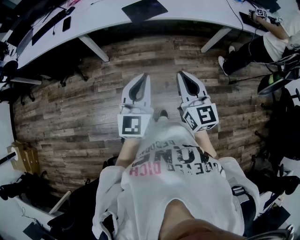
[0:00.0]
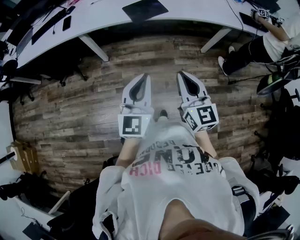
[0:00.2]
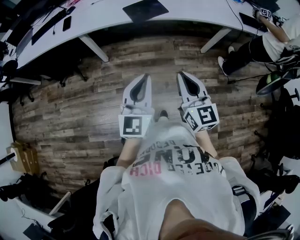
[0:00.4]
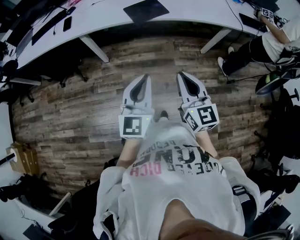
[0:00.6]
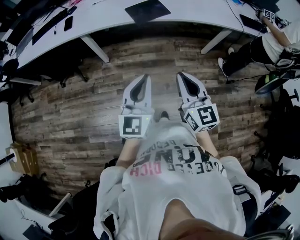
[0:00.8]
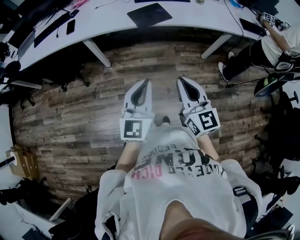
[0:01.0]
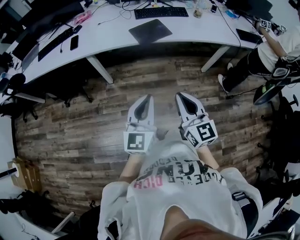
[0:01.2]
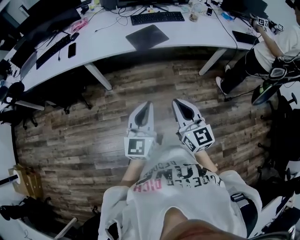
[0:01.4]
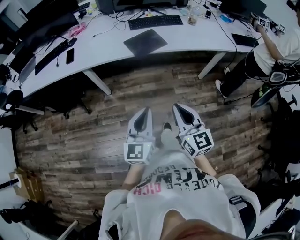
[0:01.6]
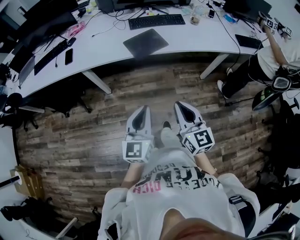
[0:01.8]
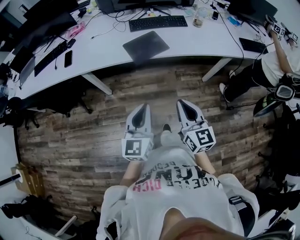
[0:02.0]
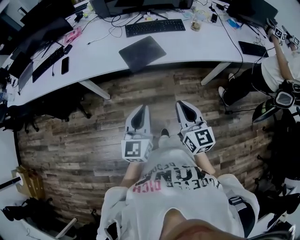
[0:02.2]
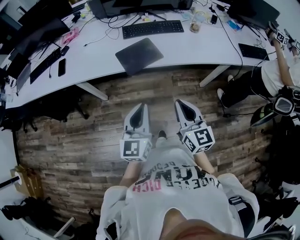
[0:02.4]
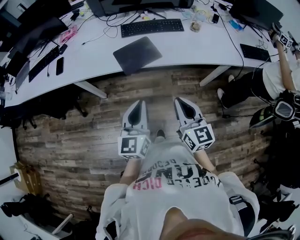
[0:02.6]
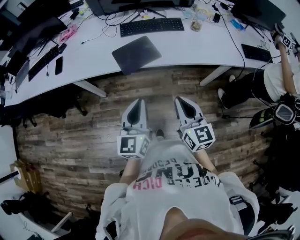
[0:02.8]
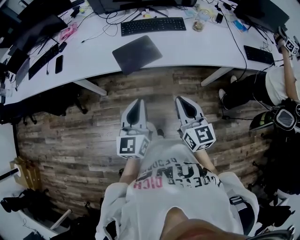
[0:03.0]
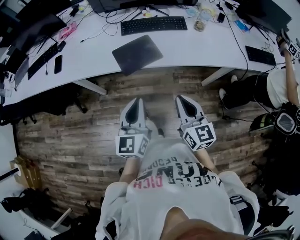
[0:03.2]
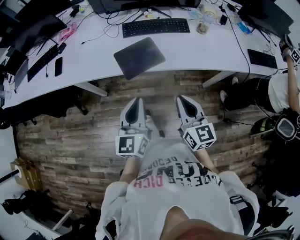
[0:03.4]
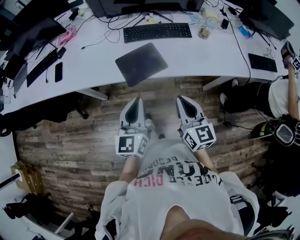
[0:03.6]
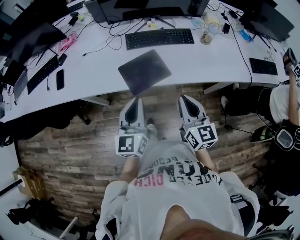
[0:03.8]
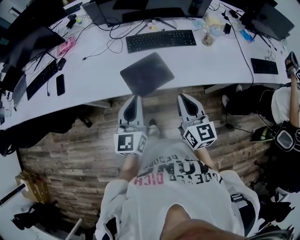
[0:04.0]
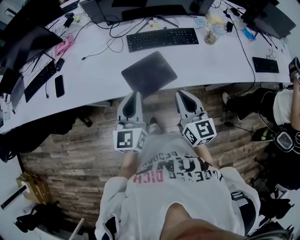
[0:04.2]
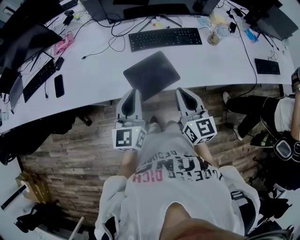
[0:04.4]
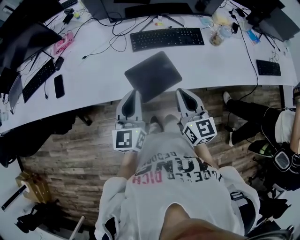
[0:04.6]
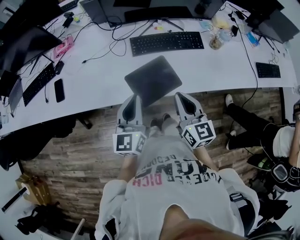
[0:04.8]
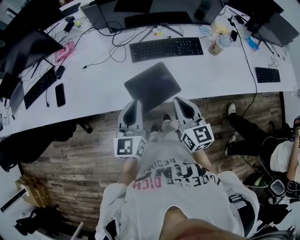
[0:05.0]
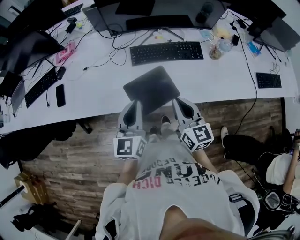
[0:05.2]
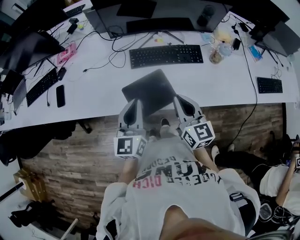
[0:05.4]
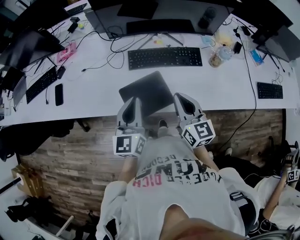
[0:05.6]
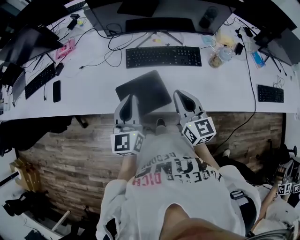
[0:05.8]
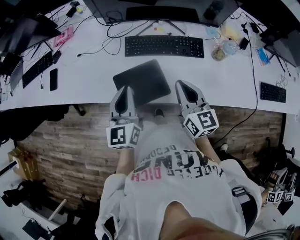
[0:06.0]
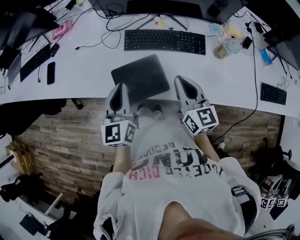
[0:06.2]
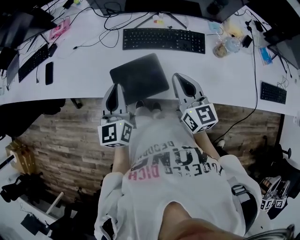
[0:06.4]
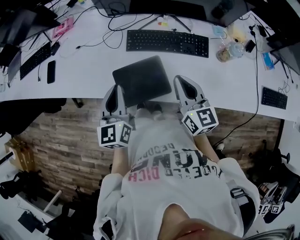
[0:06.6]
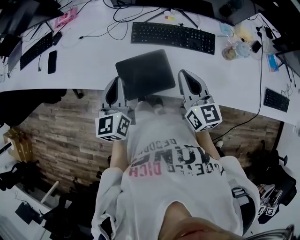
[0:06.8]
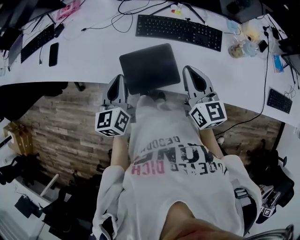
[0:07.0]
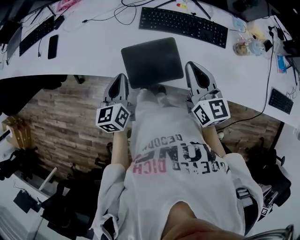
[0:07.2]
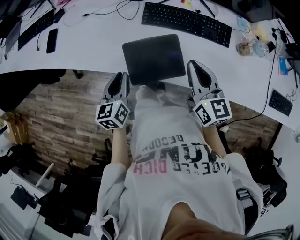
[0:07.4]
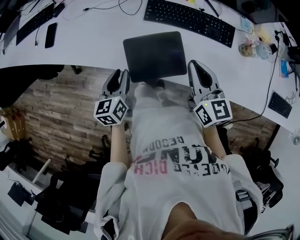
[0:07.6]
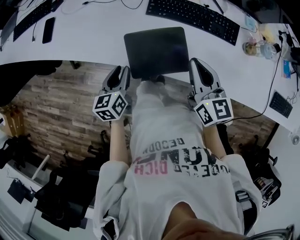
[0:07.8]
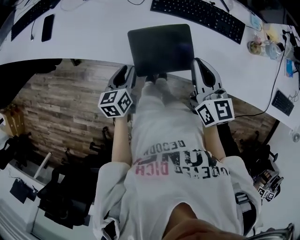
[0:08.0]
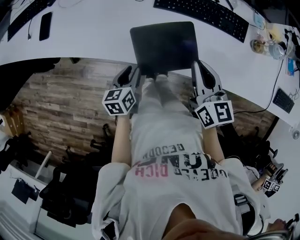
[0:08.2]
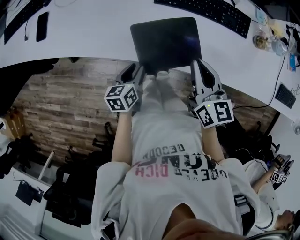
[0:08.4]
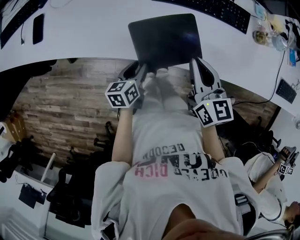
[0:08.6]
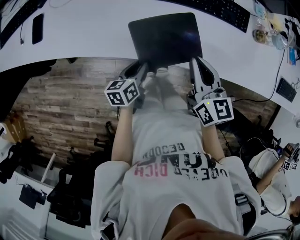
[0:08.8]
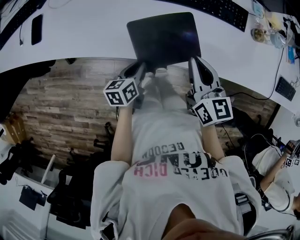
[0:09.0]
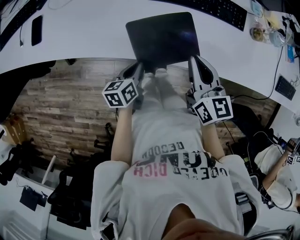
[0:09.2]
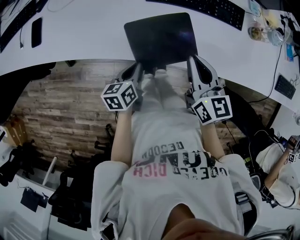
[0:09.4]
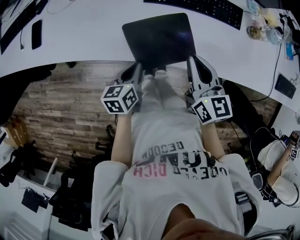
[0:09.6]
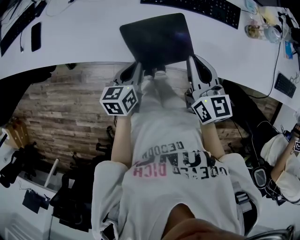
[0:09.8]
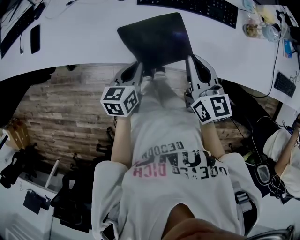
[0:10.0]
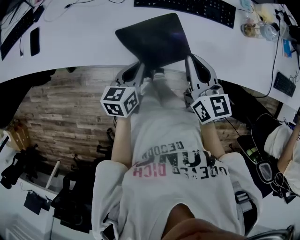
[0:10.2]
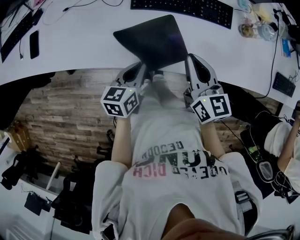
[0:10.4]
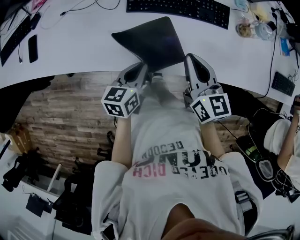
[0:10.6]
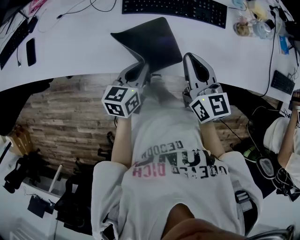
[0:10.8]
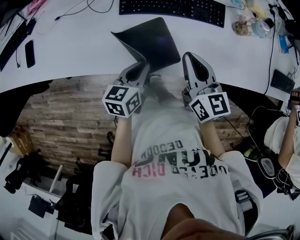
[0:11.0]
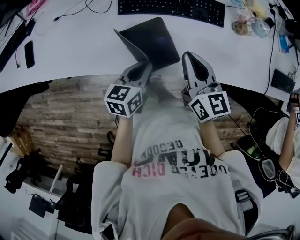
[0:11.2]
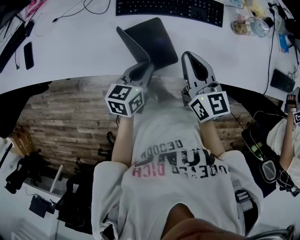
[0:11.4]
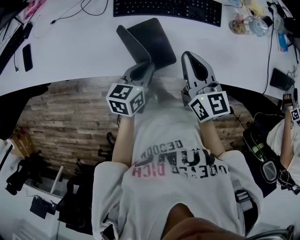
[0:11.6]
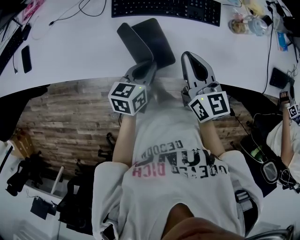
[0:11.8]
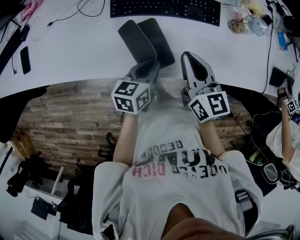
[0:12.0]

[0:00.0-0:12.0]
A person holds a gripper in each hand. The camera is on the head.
0:00.0 to 0:01.6: The right gripper shifts by about 5 cm. The left gripper moves roughly 5 cm.
0:01.6 to 0:03.0: Both grippers travel together forward and to the right, some 25 cm.
0:03.0 to 0:04.4: The two grippers go approximately 25 cm forward and to the left.
0:04.4 to 0:06.0: The right gripper moves forward and to the right, roughly 15 cm. Meanwhile the left gripper is displaced forward and to the right by roughly 10 cm.
0:06.0 to 0:07.6: The left gripper moves downward and to the left, approximately 20 cm, rotates about 30 degrees, and opens. The right gripper ends up roughly 5 cm from where it was.
0:07.6 to 0:09.0: The right gripper ends up some 5 cm from where it was. Meanwhile the left gripper goes about 10 cm downward, and swivels roughly 30 degrees.
0:09.0 to 0:10.4: The left gripper goes about 10 cm upward and to the right, while the right gripper moves approximately 5 cm.
0:10.4 to 0:12.0: The right gripper shifts by some 5 cm. The left gripper heads to the right, covering approximately 10 cm.

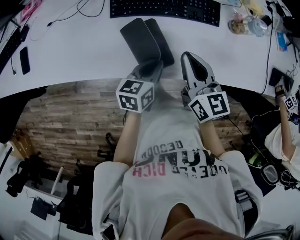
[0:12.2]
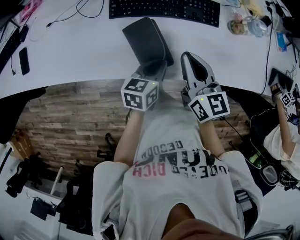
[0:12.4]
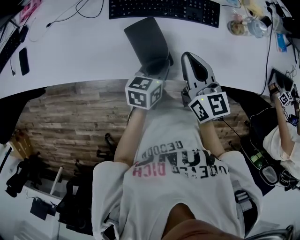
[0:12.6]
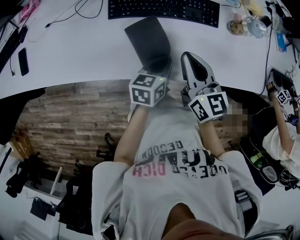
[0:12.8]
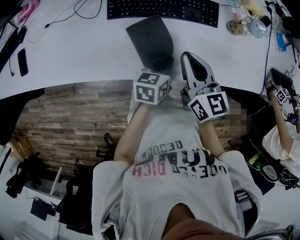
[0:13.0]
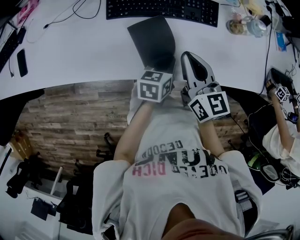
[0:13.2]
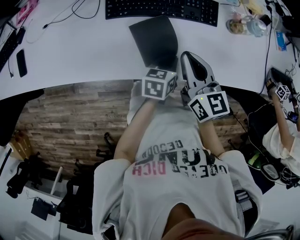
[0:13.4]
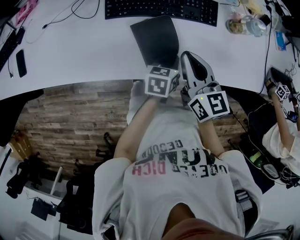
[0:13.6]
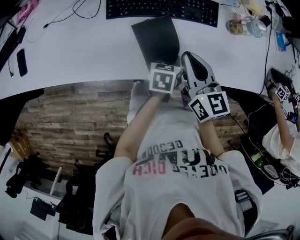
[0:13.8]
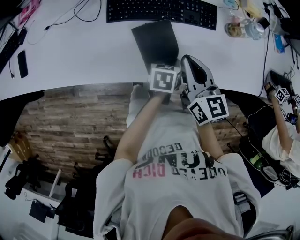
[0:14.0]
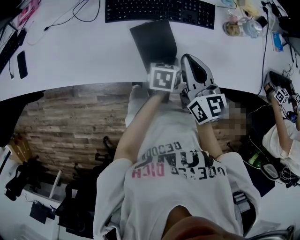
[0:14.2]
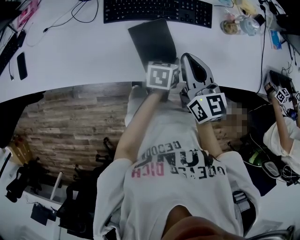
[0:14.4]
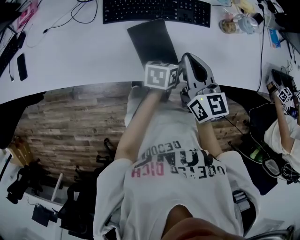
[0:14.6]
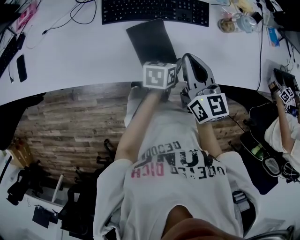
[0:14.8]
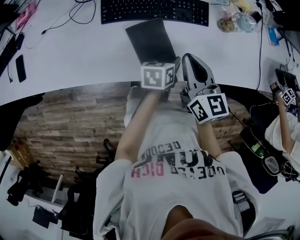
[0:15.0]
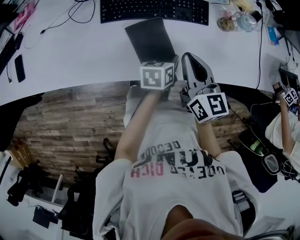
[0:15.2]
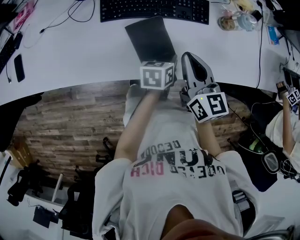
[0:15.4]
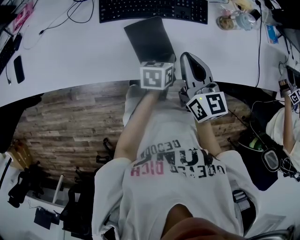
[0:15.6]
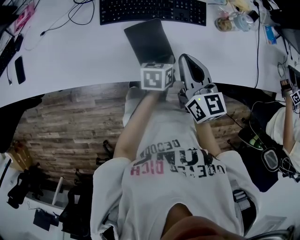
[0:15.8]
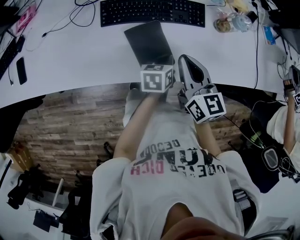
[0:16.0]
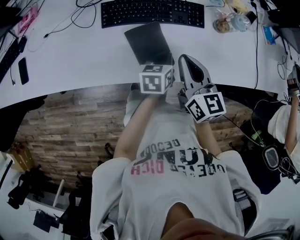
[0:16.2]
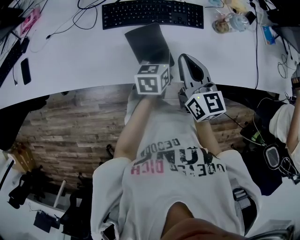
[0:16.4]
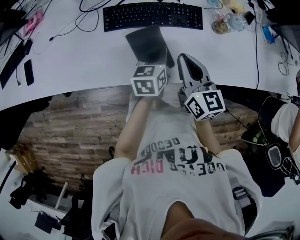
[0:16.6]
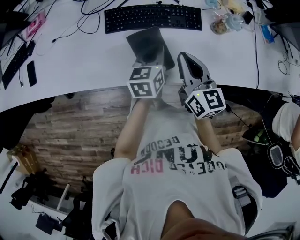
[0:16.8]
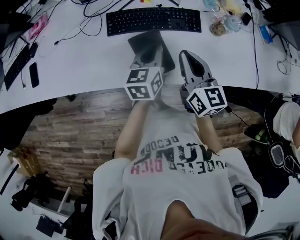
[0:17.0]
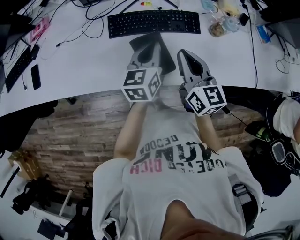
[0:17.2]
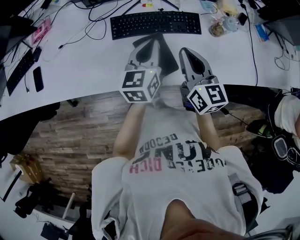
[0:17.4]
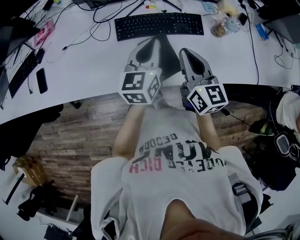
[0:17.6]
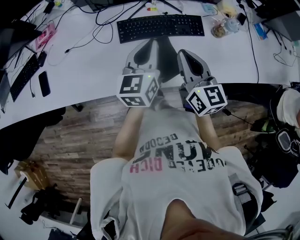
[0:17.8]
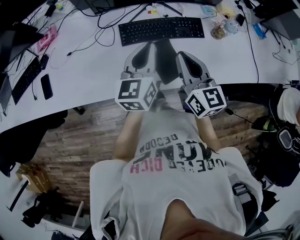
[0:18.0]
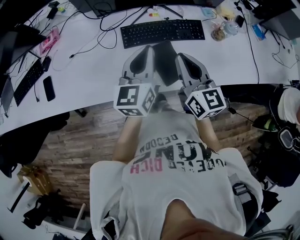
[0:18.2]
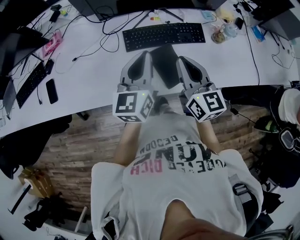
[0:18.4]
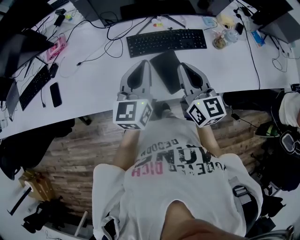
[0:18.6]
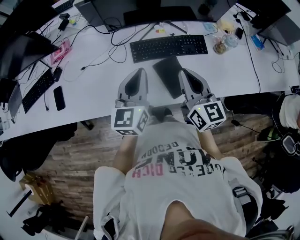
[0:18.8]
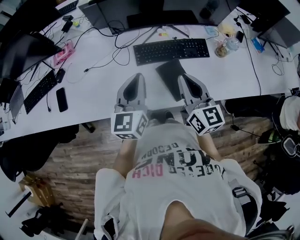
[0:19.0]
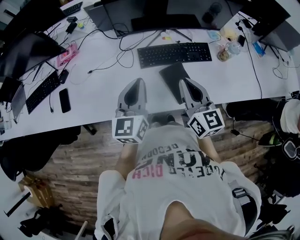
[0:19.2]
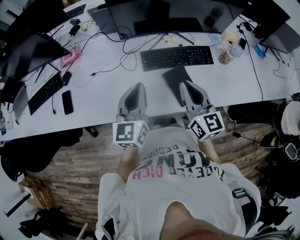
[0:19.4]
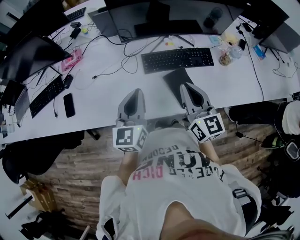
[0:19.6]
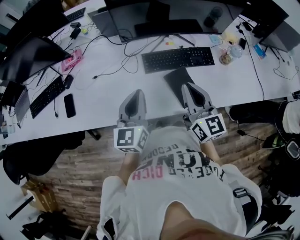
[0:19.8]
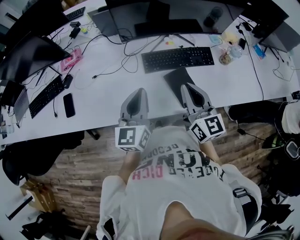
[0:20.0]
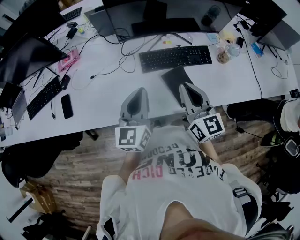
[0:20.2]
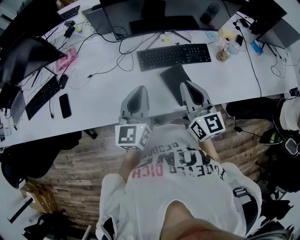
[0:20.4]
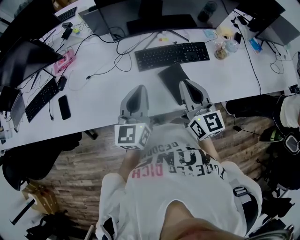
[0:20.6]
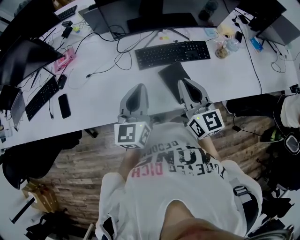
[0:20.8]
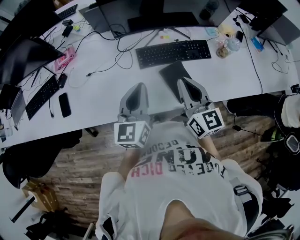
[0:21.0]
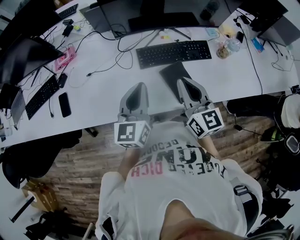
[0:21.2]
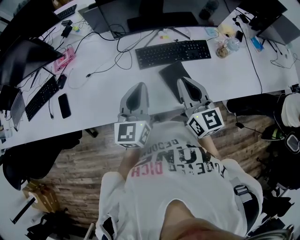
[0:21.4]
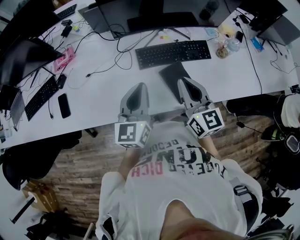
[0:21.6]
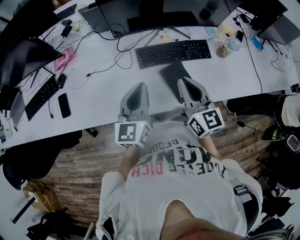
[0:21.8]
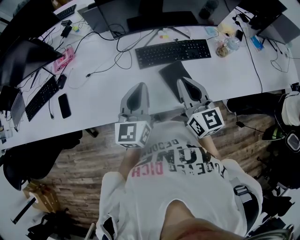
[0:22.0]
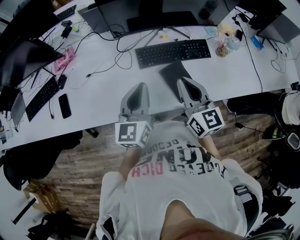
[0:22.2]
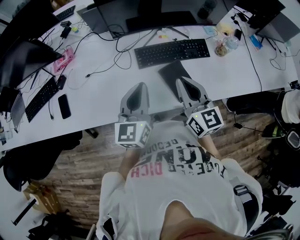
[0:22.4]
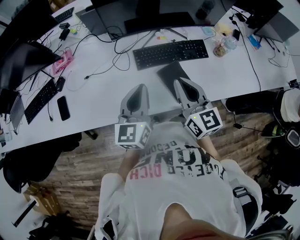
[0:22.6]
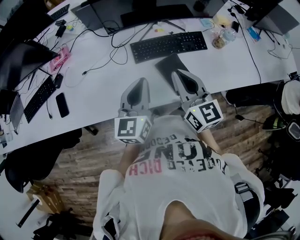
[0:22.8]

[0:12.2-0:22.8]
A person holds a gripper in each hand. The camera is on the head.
0:12.2 to 0:13.8: The left gripper heads to the right and downward, covering approximately 10 cm.
0:13.8 to 0:15.2: The left gripper opens.
0:15.2 to 0:16.8: The left gripper shifts approximately 10 cm upward and to the left, changes its angle by approximately 30 degrees, and closes its fingers.
0:16.8 to 0:18.2: The left gripper moves upward and to the left, about 20 cm, and swivels some 20 degrees, while the right gripper travels to the left and upward by some 10 cm.
0:18.2 to 0:19.8: The right gripper heads to the left, covering roughly 5 cm; the left gripper moves to the left and backward, some 15 cm.
0:19.8 to 0:22.8: The grippers move only a little.

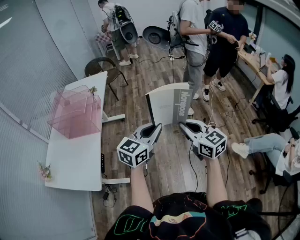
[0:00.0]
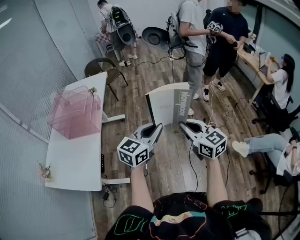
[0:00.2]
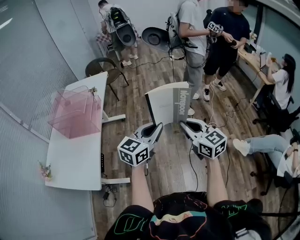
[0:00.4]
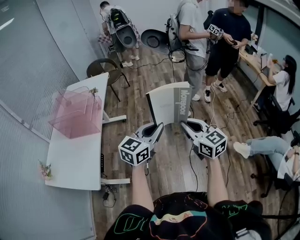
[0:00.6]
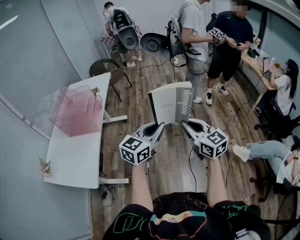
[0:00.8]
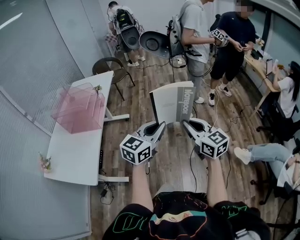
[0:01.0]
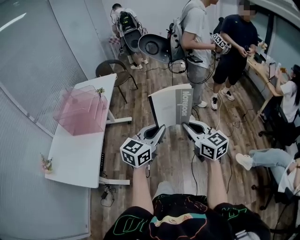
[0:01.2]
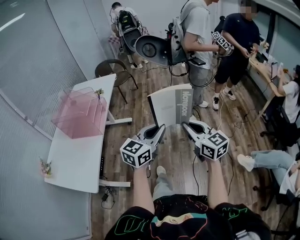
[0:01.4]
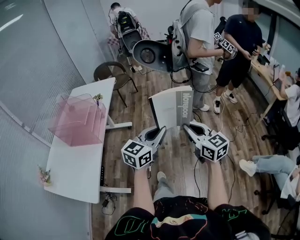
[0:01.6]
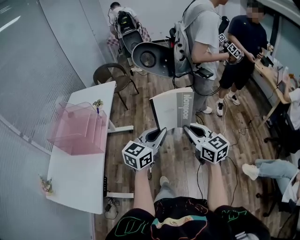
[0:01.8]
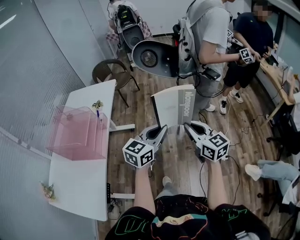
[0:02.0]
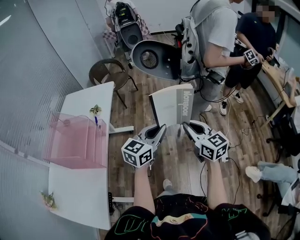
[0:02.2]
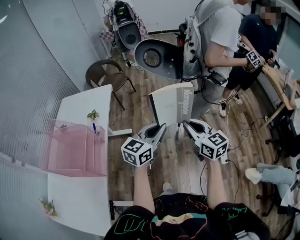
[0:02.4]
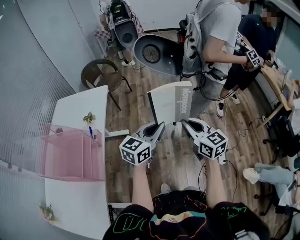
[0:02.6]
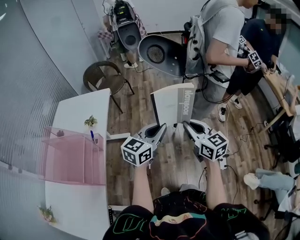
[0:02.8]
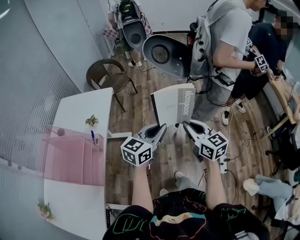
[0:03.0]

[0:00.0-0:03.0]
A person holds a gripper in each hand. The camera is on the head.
0:00.0 to 0:01.6: The two grippers go some 10 cm forward.
0:01.6 to 0:03.0: Both grippers travel together forward, approximately 35 cm.
